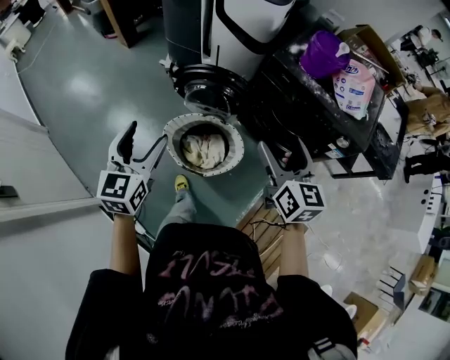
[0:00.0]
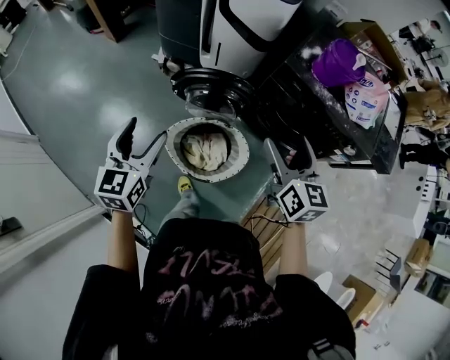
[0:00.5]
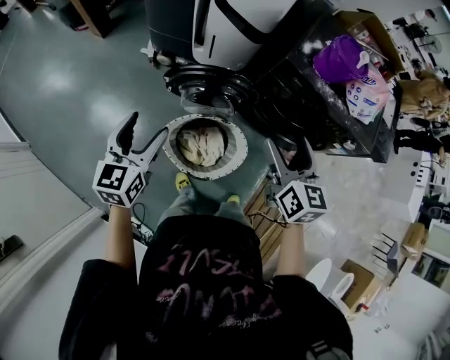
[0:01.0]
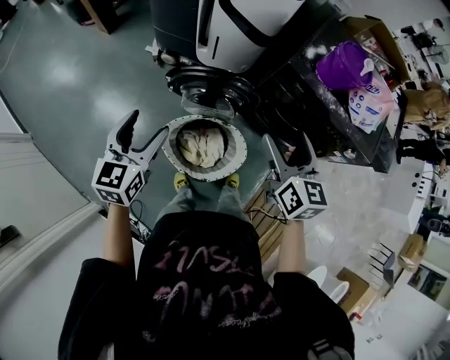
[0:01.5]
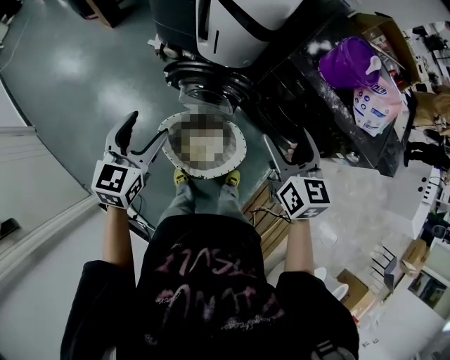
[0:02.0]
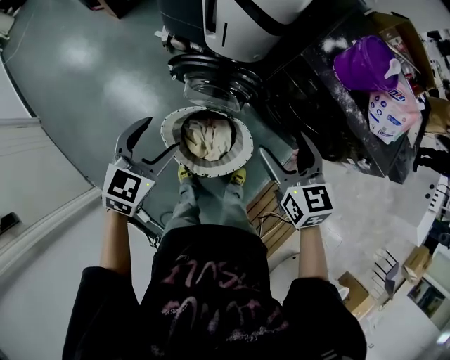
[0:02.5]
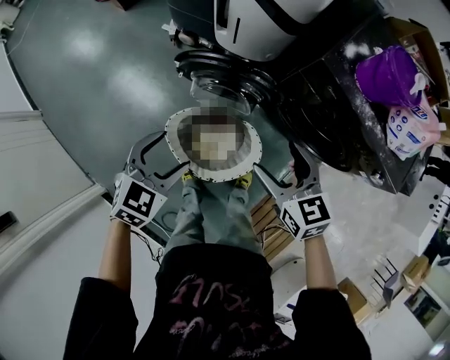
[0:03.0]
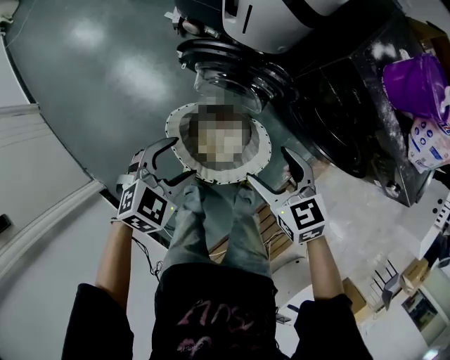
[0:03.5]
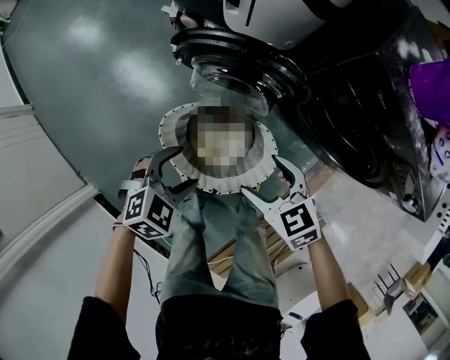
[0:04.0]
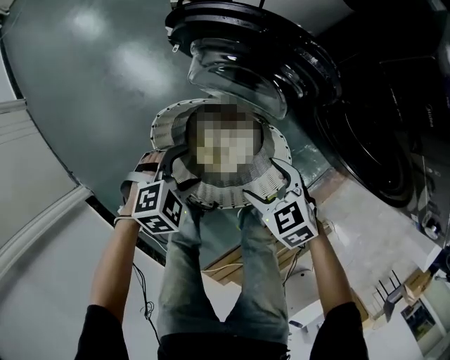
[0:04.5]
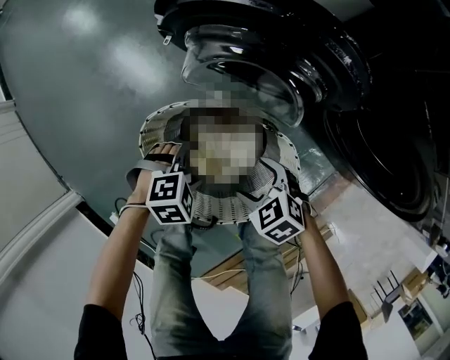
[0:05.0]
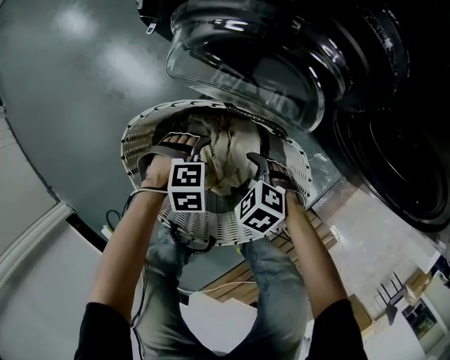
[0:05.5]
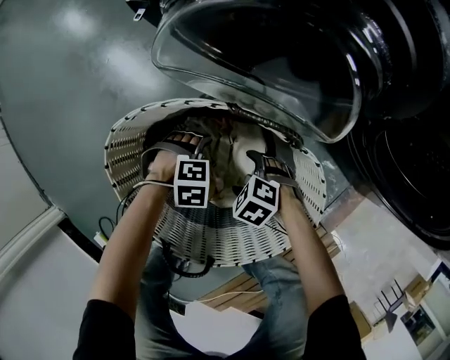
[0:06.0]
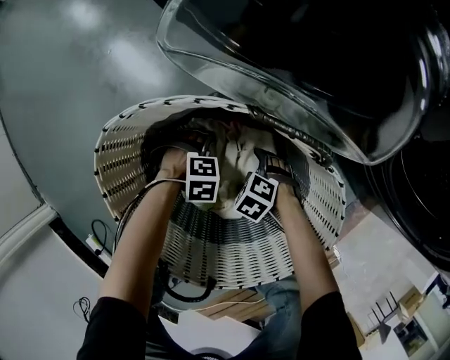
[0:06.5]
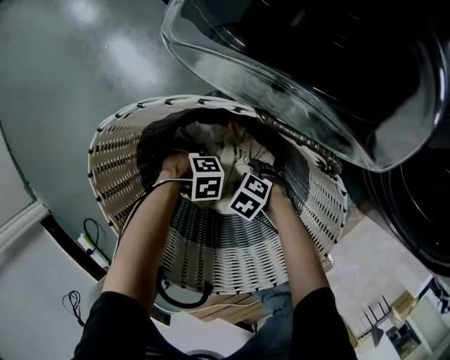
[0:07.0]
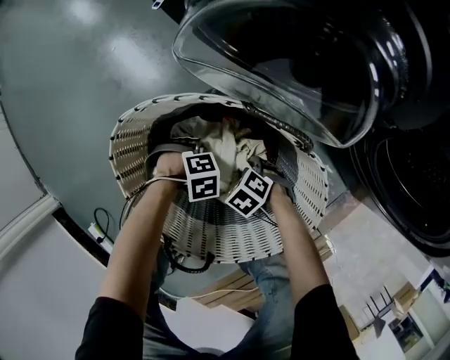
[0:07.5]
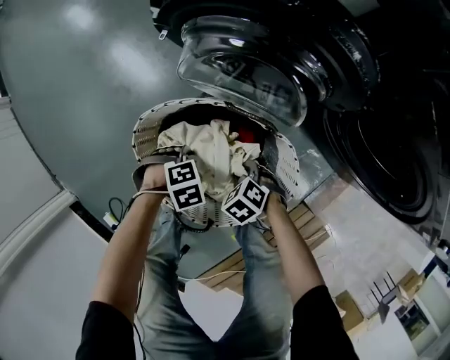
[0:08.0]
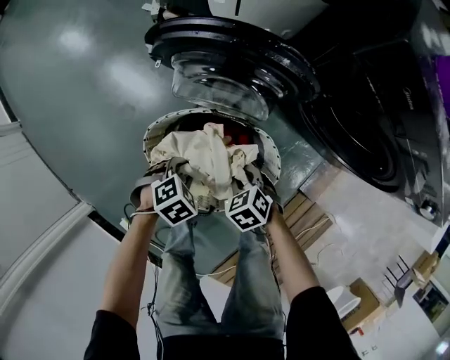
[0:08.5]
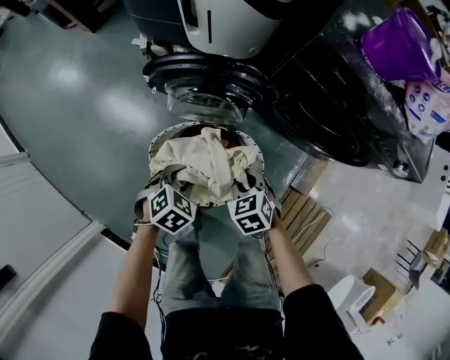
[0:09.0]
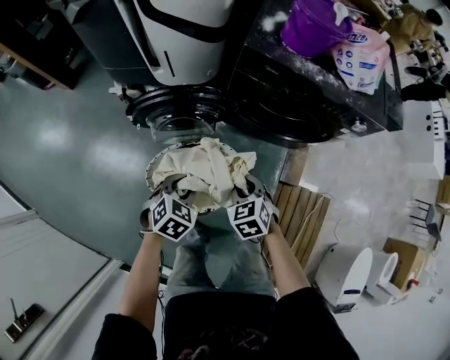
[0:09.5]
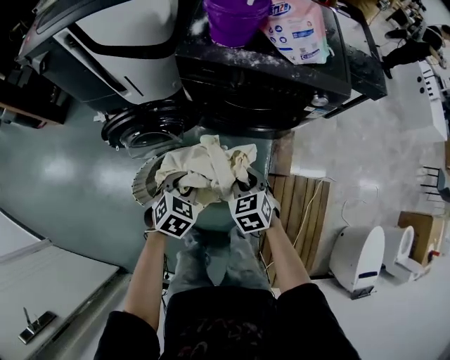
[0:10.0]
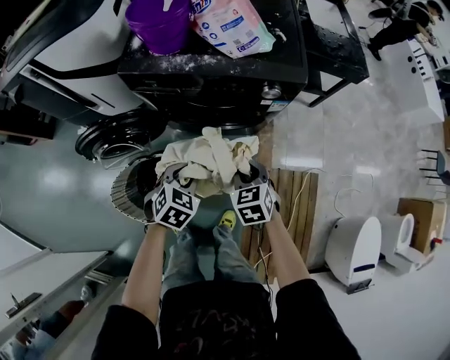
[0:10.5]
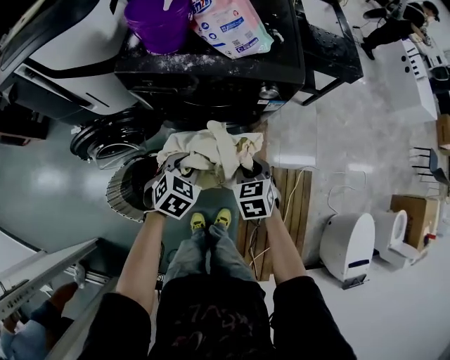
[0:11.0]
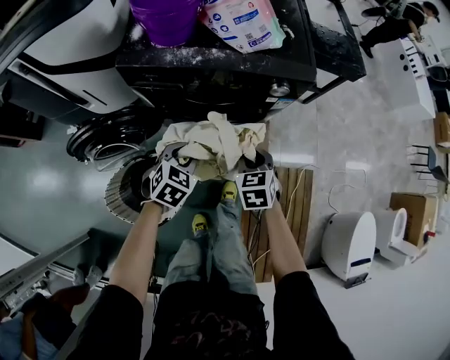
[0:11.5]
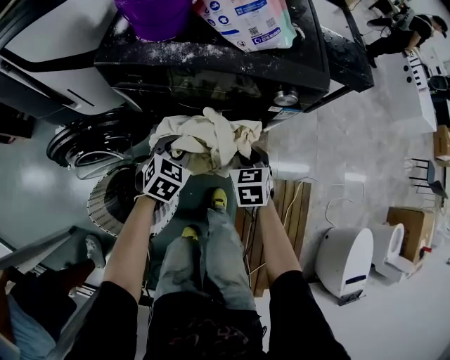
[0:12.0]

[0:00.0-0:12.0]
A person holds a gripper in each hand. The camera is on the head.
0:00.0 to 0:02.0: The left gripper shifts roughly 15 cm forward and downward. Meanwhile the right gripper goes about 15 cm forward.
0:02.0 to 0:04.0: The grippers both shift downward by some 30 cm. The left gripper tilts its fingers approximately 30 degrees downward, while the right gripper turns by roughly 50 degrees.
0:04.0 to 0:06.0: Both grippers travel together downward, some 50 cm. The left gripper changes its angle by some 40 degrees; the right gripper angles its fingers downward, by roughly 30 degrees.
0:06.0 to 0:08.0: The two grippers go approximately 10 cm upward. The left gripper closes up; the right gripper closes.
0:08.0 to 0:10.0: Both grippers travel together upward, some 40 cm. The right gripper tilts its fingers approximately 30 degrees upward, while the left gripper changes its angle by about 30 degrees.
0:10.0 to 0:12.0: Both grippers move forward, to the right and downward, roughly 25 cm.

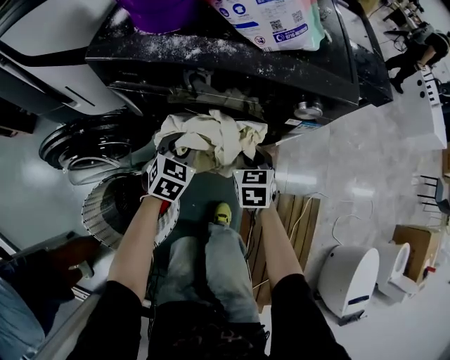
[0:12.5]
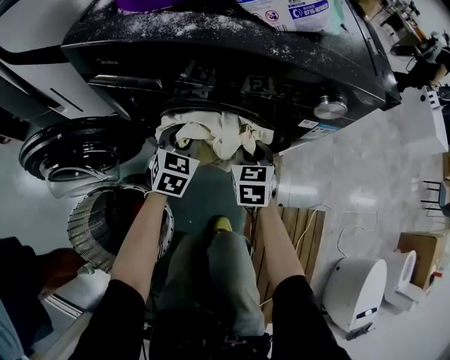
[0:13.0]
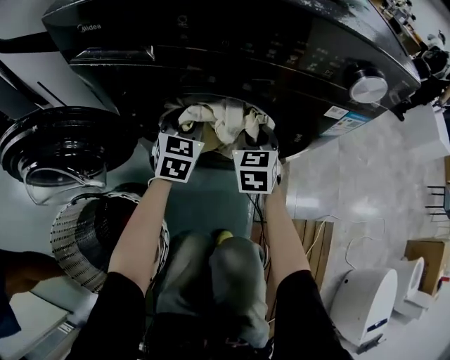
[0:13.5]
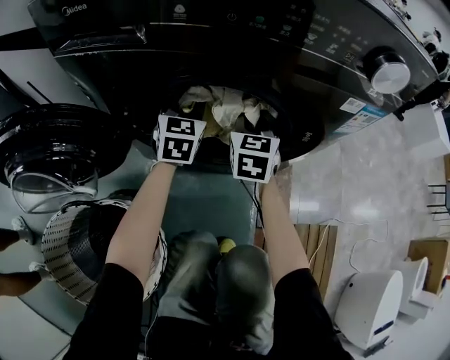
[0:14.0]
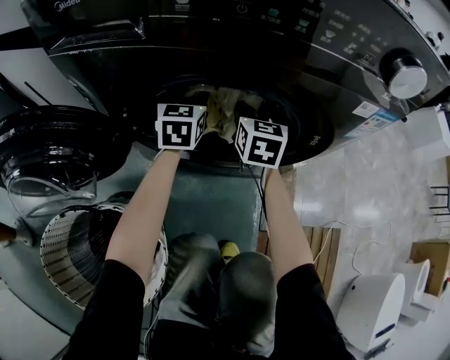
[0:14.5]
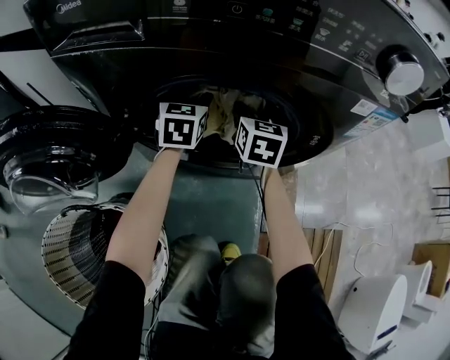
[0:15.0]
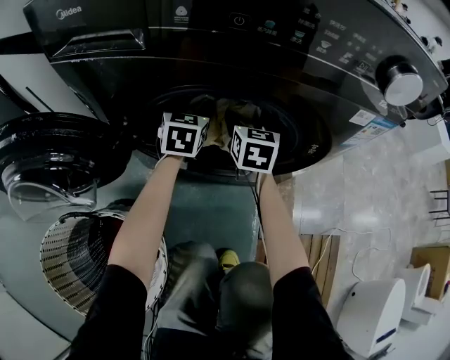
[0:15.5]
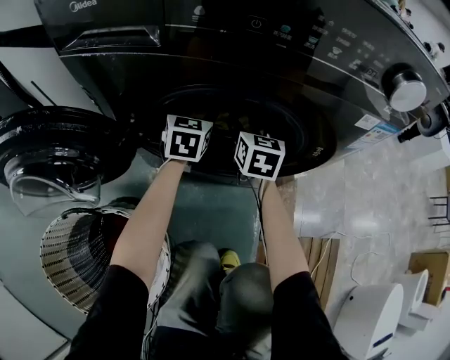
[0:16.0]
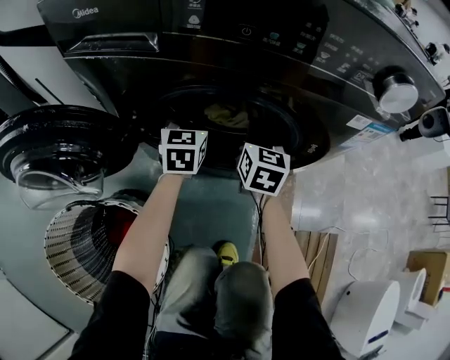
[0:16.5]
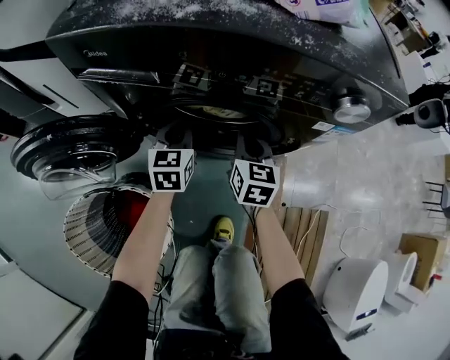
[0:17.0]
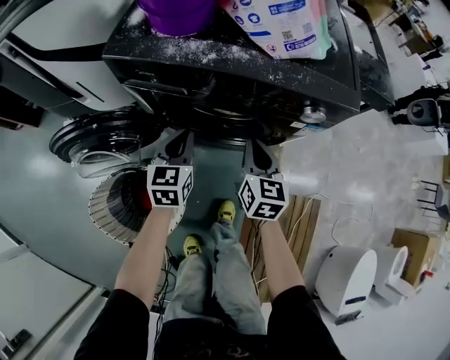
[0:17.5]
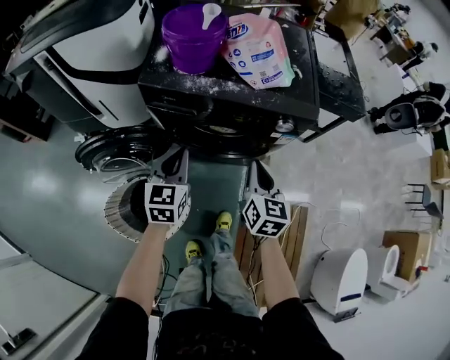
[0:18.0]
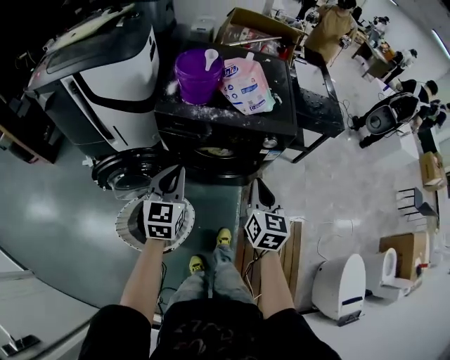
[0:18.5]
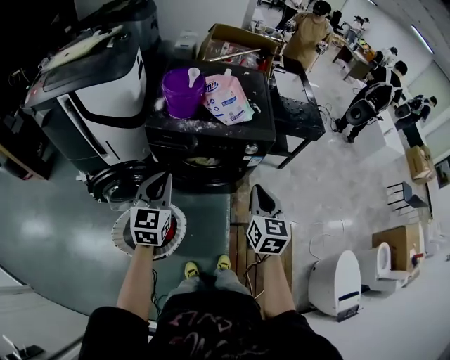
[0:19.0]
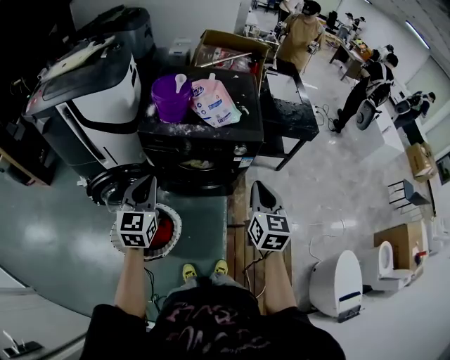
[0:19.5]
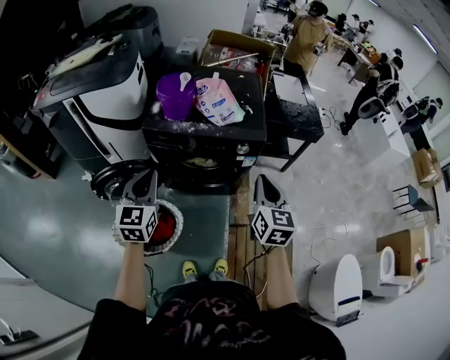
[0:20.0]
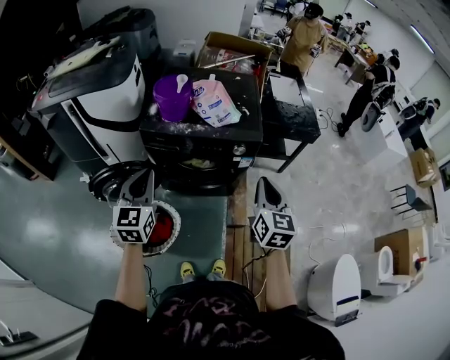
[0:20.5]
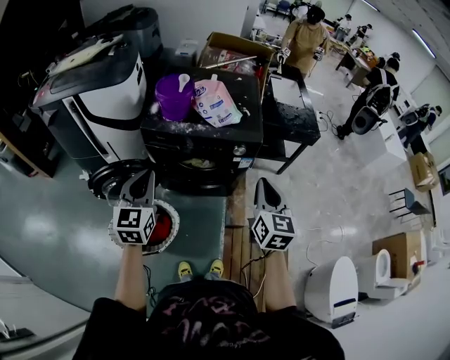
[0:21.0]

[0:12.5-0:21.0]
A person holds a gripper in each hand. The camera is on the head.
0:12.5 to 0:14.5: Both grippers travel together forward and downward, some 25 cm. The right gripper swivels approximately 20 degrees, and opens. The left gripper turns by roughly 30 degrees.
0:14.5 to 0:16.5: The right gripper closes its fingers.
0:16.5 to 0:19.0: The two grippers go some 60 cm upward and backward.
0:19.0 to 0:21.0: The right gripper goes about 10 cm to the right and upward; the left gripper is displaced upward by approximately 5 cm.

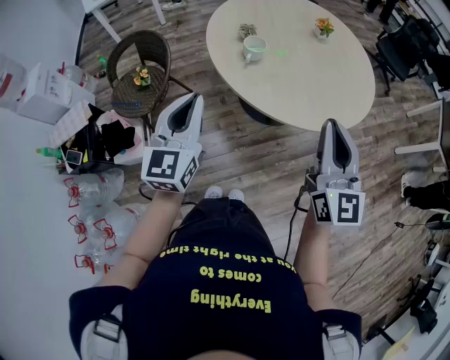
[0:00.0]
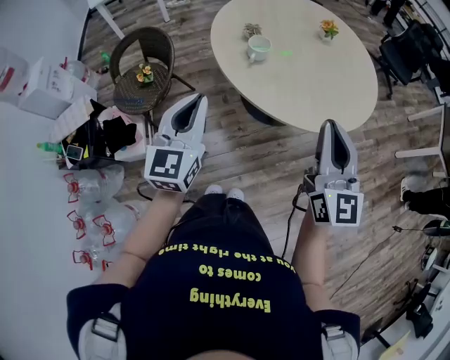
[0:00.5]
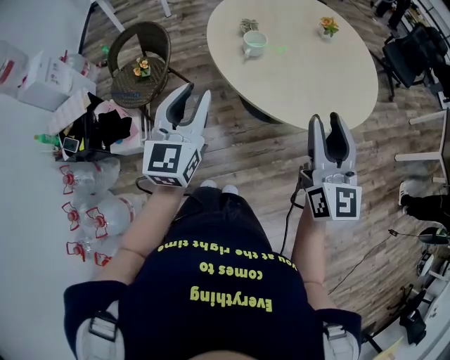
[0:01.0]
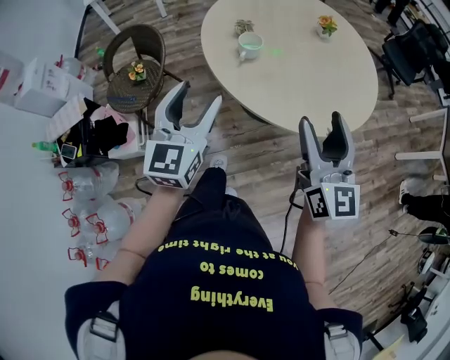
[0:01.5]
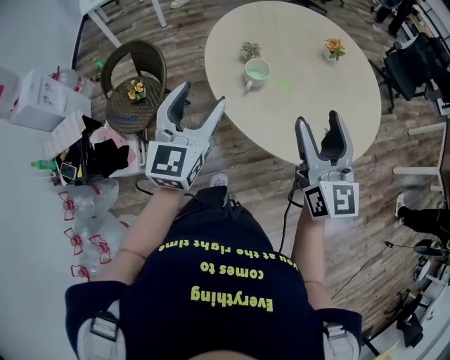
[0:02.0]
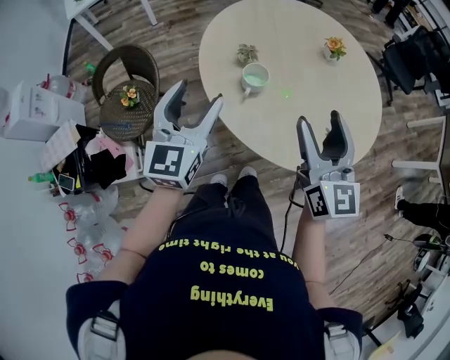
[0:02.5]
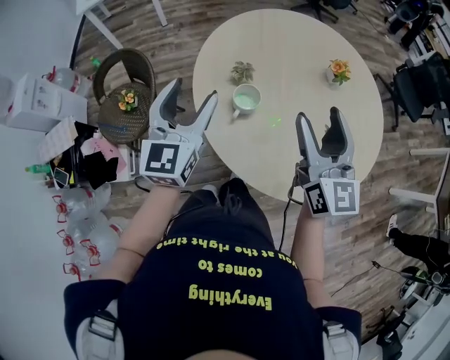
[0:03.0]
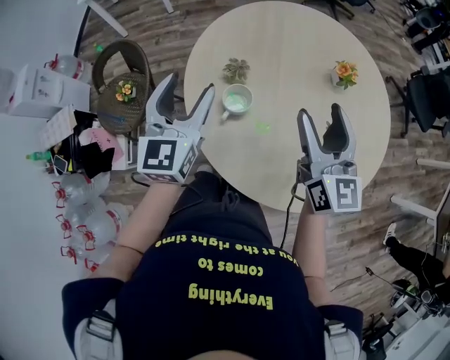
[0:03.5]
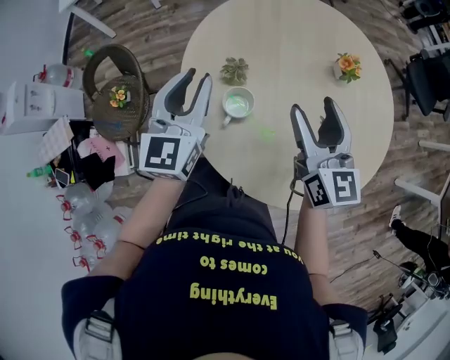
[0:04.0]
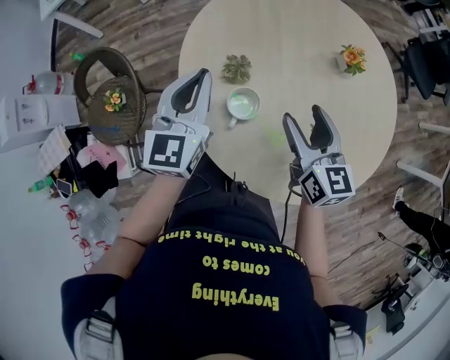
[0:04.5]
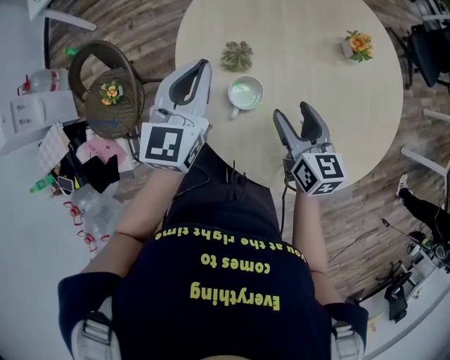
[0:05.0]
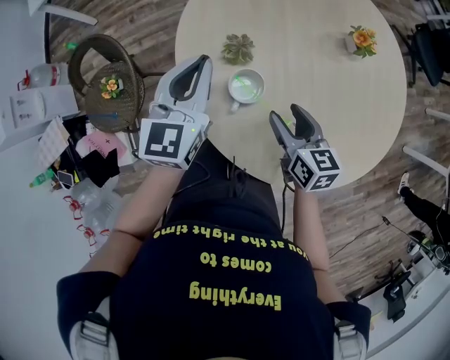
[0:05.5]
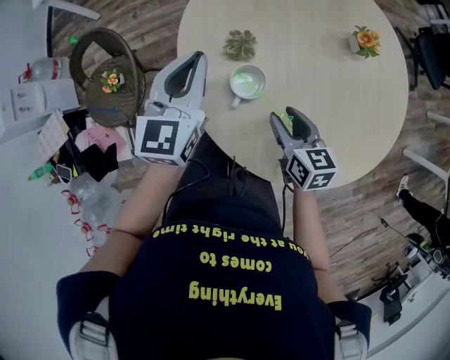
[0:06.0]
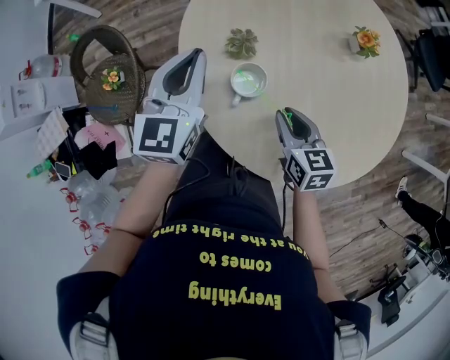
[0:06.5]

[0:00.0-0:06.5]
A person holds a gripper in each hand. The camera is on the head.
0:00.0 to 0:02.0: Both grippers travel together forward, about 15 cm. The left gripper opens. Meanwhile the right gripper opens.
0:02.0 to 0:04.5: The left gripper shifts some 30 cm forward, and closes; the right gripper is displaced forward and downward by about 30 cm, and rotates roughly 20 degrees.
0:04.5 to 0:06.5: The right gripper shifts some 15 cm downward and backward, and closes.
